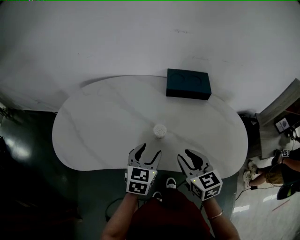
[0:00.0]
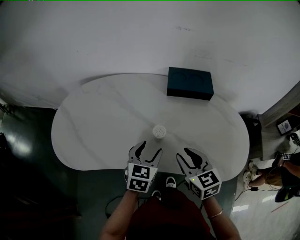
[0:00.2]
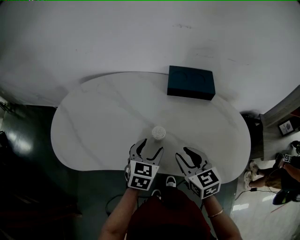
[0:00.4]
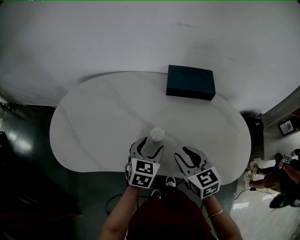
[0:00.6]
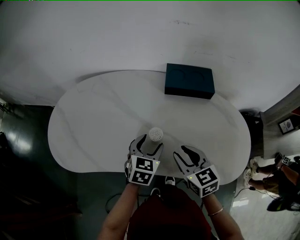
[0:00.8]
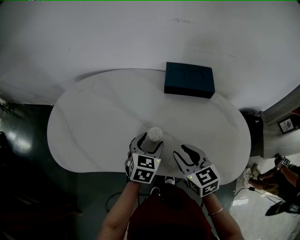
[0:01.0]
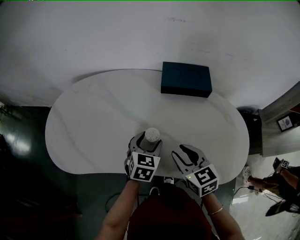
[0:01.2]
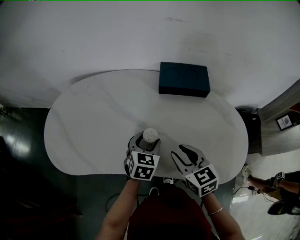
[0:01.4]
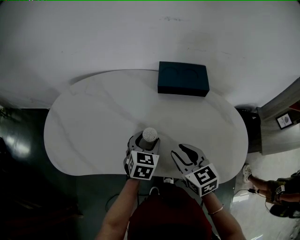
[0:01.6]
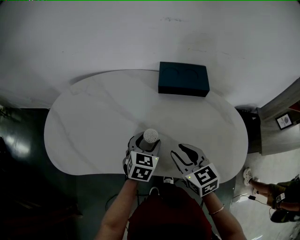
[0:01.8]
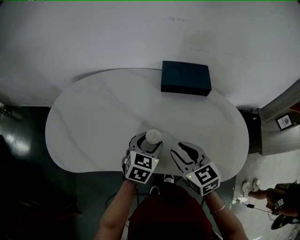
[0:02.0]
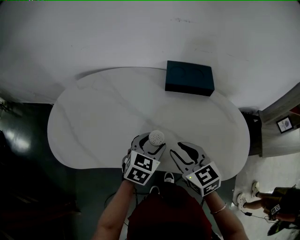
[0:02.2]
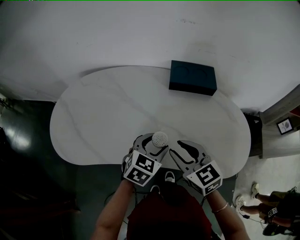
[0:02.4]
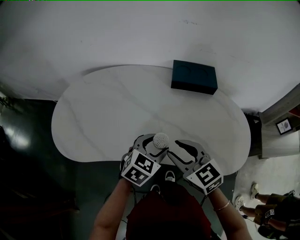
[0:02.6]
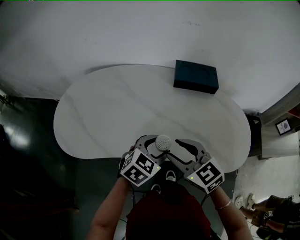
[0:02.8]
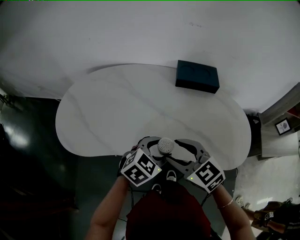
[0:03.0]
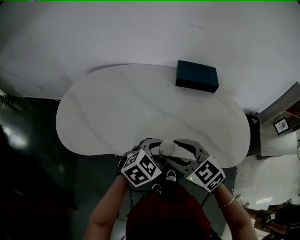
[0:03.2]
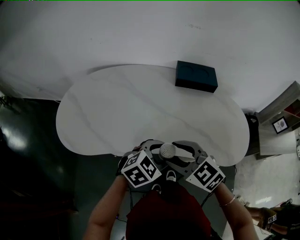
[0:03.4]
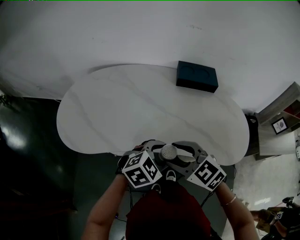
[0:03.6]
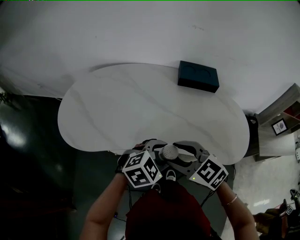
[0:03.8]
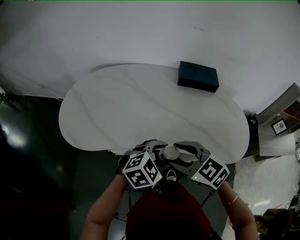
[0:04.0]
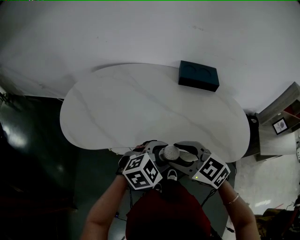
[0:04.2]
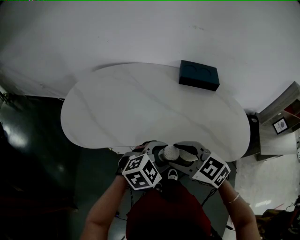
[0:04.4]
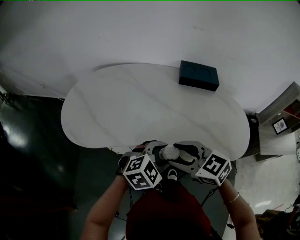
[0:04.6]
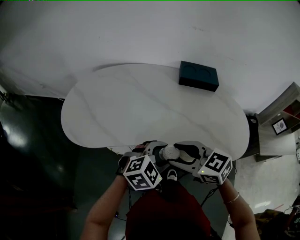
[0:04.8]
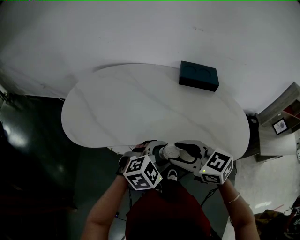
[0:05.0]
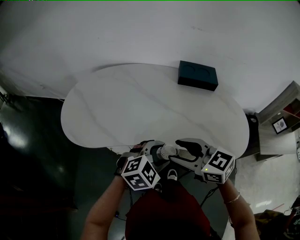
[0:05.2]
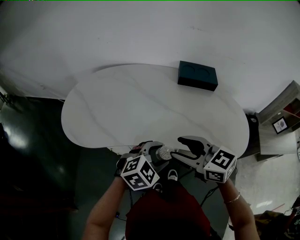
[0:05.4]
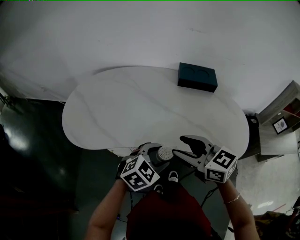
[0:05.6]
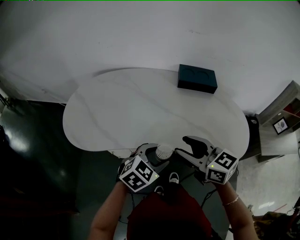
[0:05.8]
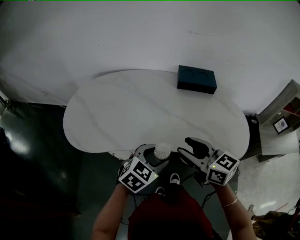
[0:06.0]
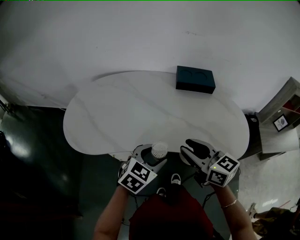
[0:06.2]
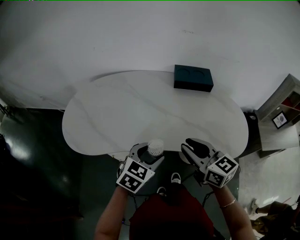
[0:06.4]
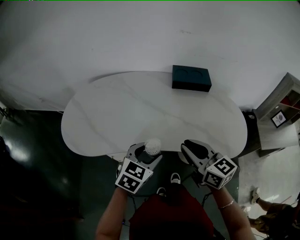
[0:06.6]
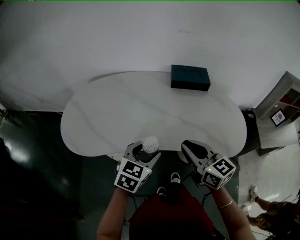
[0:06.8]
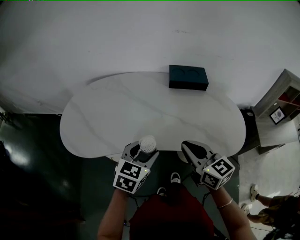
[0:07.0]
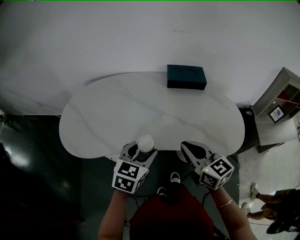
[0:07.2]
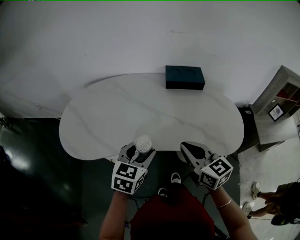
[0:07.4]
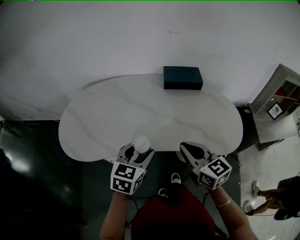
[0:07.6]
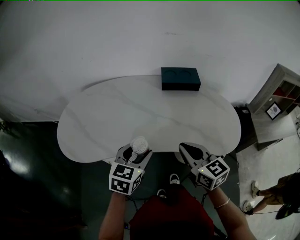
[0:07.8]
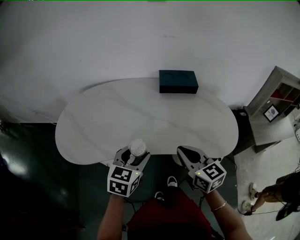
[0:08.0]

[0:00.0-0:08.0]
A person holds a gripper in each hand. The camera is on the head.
0:00.0 to 0:01.6: The right gripper changes place by some 5 cm; the left gripper is displaced forward by approximately 10 cm.
0:01.6 to 0:03.2: The left gripper goes approximately 15 cm backward, and rotates some 30 degrees. Meanwhile the right gripper goes some 15 cm to the left, backward and upward, turns by approximately 30 degrees, and opens.
0:03.2 to 0:04.8: The two grippers go some 5 cm backward.
0:04.8 to 0:06.4: The right gripper goes approximately 5 cm to the right, turns by about 30 degrees, and closes its fingers. Meanwhile the left gripper shifts by some 5 cm, and swivels some 30 degrees.
0:06.4 to 0:08.0: The right gripper closes.

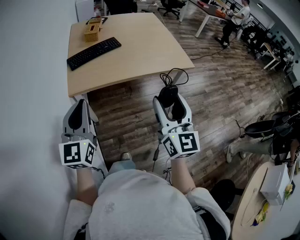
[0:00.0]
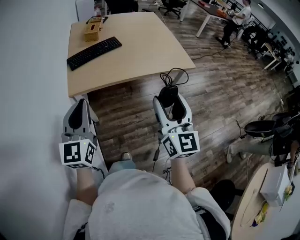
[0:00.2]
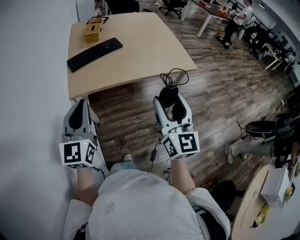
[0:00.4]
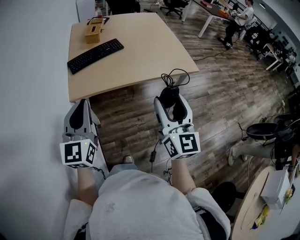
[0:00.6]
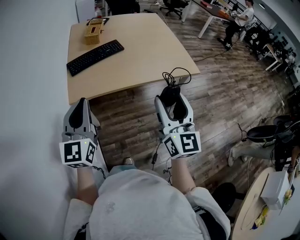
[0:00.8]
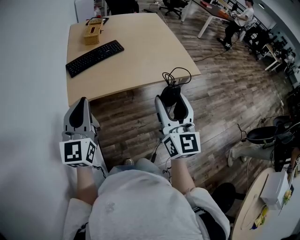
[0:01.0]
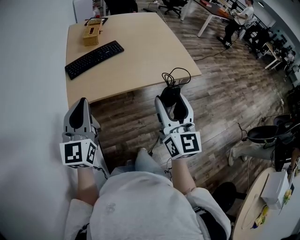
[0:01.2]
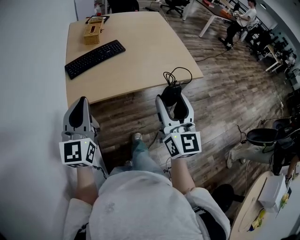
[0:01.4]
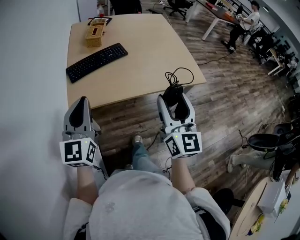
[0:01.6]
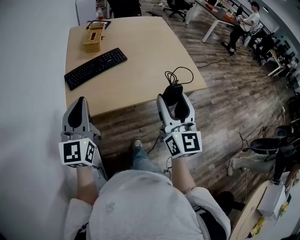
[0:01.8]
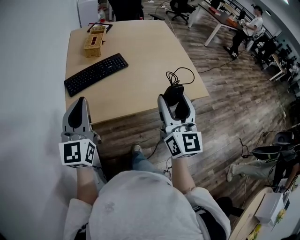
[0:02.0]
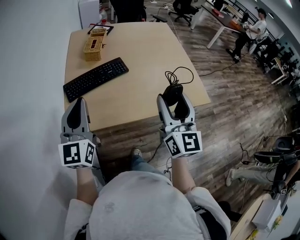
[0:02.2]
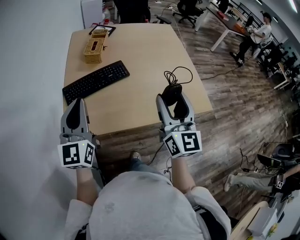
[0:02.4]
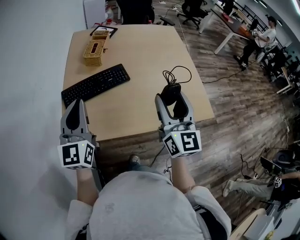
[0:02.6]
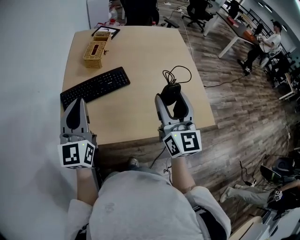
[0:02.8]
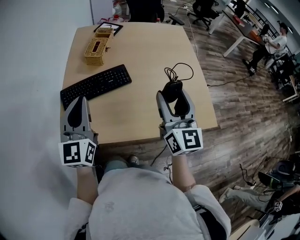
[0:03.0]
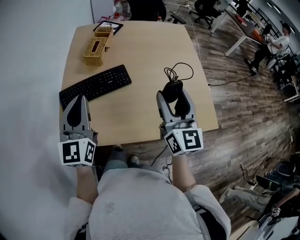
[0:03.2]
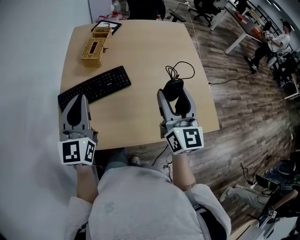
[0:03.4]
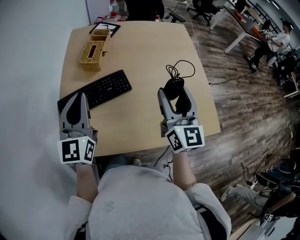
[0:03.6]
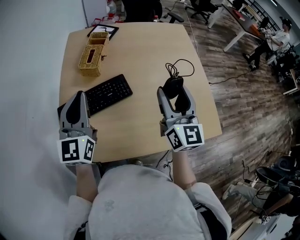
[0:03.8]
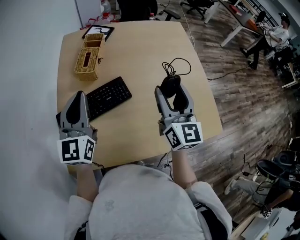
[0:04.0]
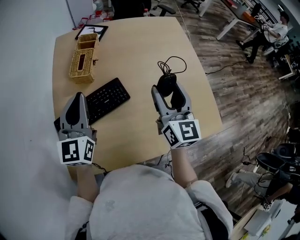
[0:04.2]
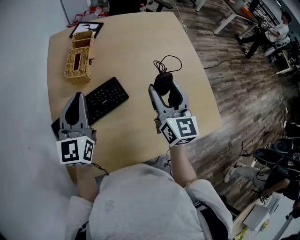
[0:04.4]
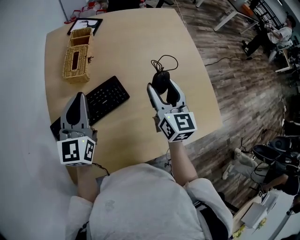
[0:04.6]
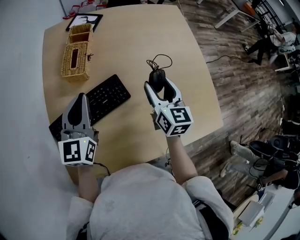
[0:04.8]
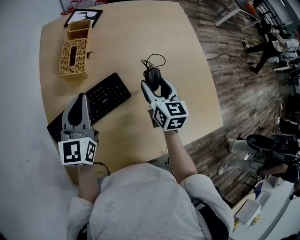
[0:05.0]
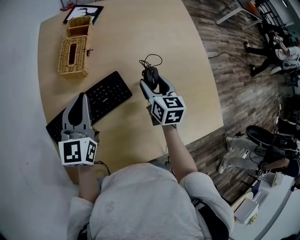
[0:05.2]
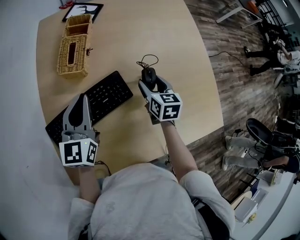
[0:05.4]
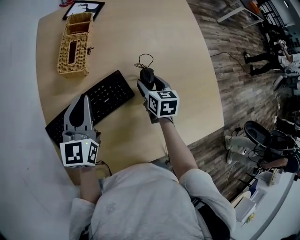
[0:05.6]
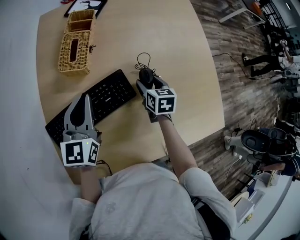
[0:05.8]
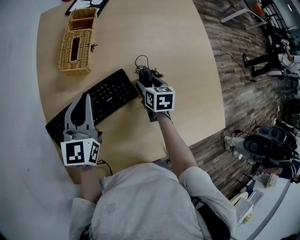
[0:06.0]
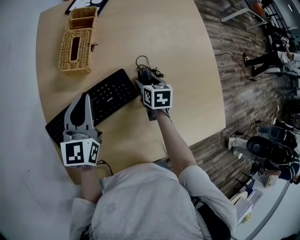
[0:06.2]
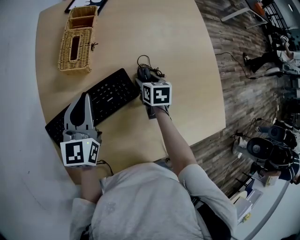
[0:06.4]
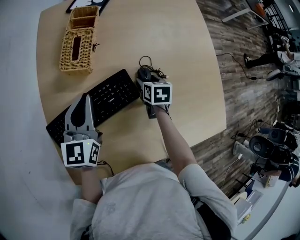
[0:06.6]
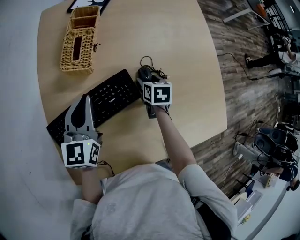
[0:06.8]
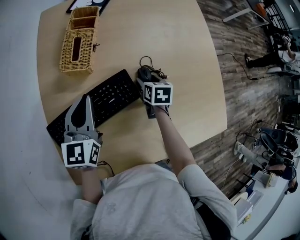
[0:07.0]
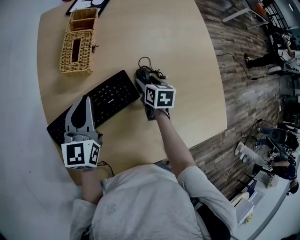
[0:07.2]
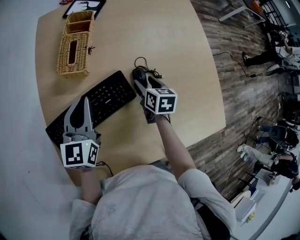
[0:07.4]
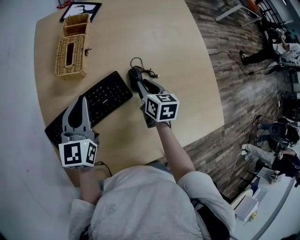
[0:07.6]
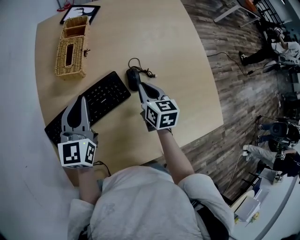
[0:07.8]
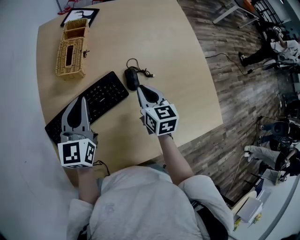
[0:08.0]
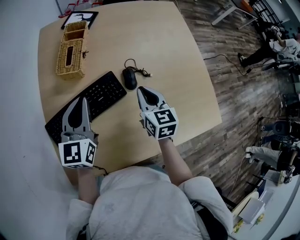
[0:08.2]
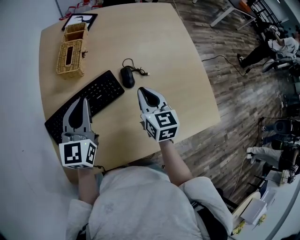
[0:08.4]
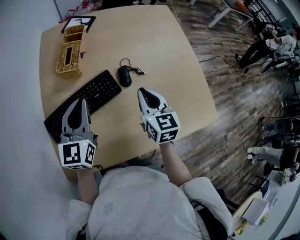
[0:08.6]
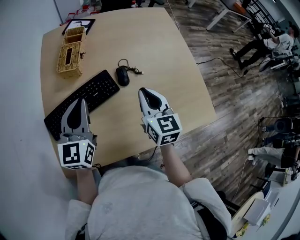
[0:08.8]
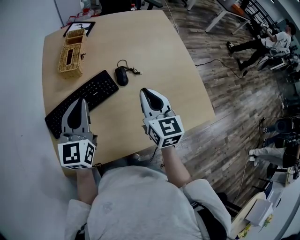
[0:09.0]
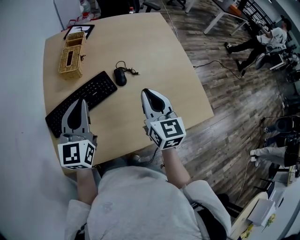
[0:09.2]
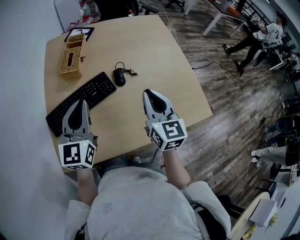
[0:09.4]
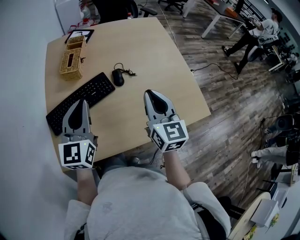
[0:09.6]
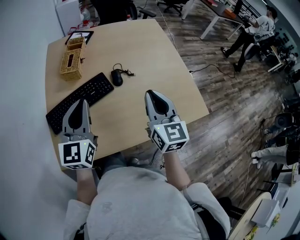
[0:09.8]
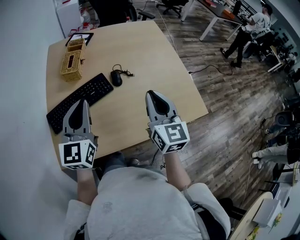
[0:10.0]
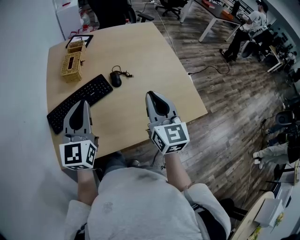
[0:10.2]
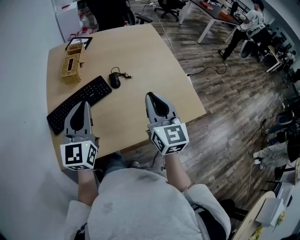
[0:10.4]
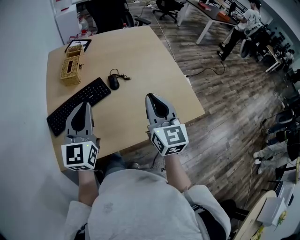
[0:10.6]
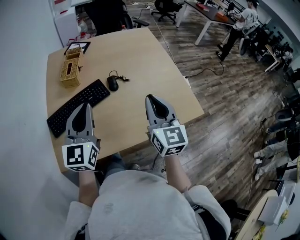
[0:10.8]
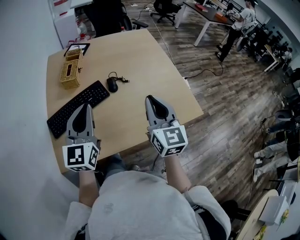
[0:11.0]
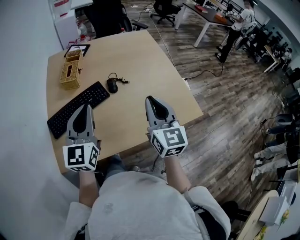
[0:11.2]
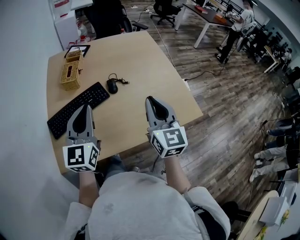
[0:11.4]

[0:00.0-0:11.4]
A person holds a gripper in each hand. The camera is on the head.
0:00.0 to 0:01.4: The grippers both shift forward by approximately 15 cm.
0:01.4 to 0:02.8: Both grippers move forward, approximately 30 cm.
0:02.8 to 0:04.2: Both grippers travel together forward, approximately 20 cm.
0:04.2 to 0:05.6: The left gripper goes some 15 cm downward and forward. Meanwhile the right gripper moves downward and forward, about 25 cm, and points its fingers some 40 degrees further downward.
0:05.6 to 0:07.2: The right gripper moves downward, approximately 5 cm.
0:07.2 to 0:08.6: The left gripper goes roughly 15 cm backward, upward and to the right, while the right gripper is displaced upward and backward by approximately 25 cm, rotates some 30 degrees, and closes.
0:08.6 to 0:10.0: The left gripper shifts roughly 15 cm backward and upward. The right gripper travels backward, upward and to the right by about 20 cm.
0:10.0 to 0:11.4: The right gripper ends up roughly 5 cm from where it was.

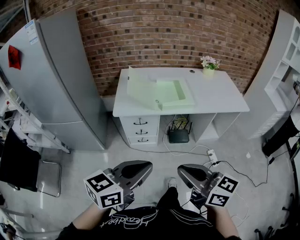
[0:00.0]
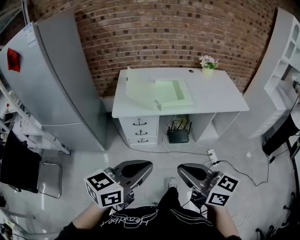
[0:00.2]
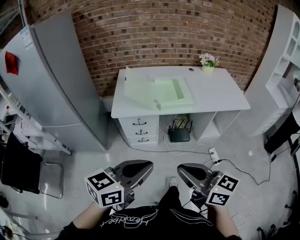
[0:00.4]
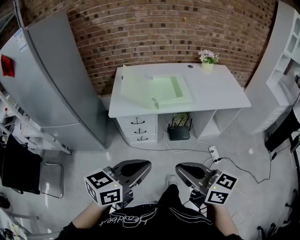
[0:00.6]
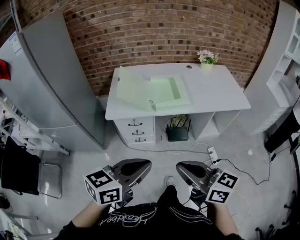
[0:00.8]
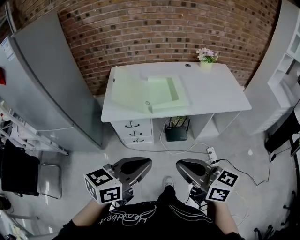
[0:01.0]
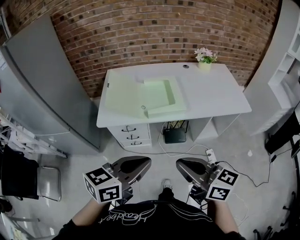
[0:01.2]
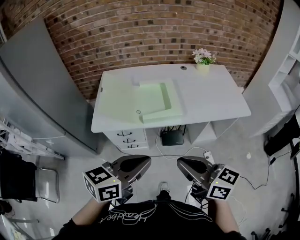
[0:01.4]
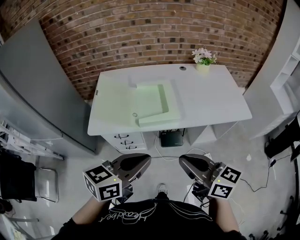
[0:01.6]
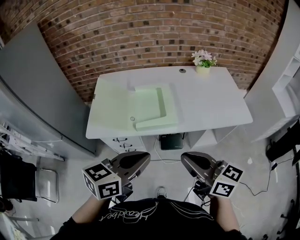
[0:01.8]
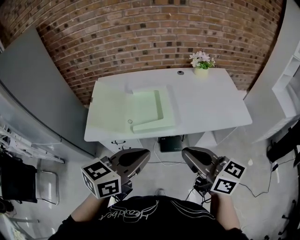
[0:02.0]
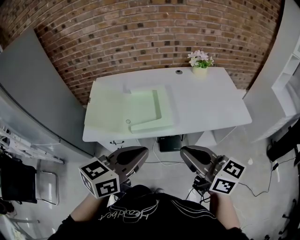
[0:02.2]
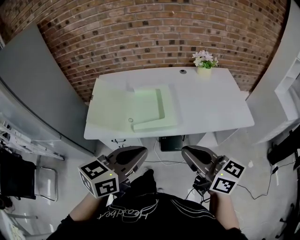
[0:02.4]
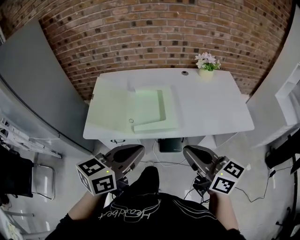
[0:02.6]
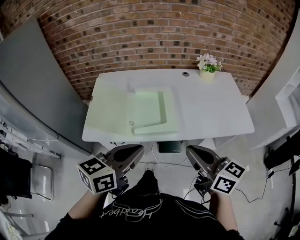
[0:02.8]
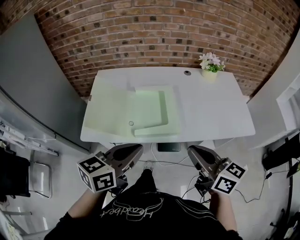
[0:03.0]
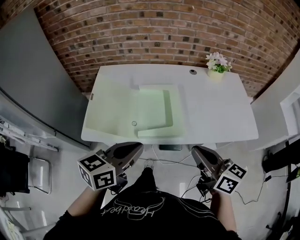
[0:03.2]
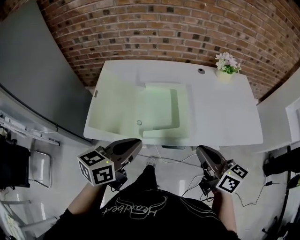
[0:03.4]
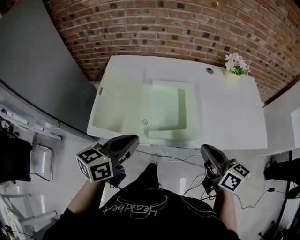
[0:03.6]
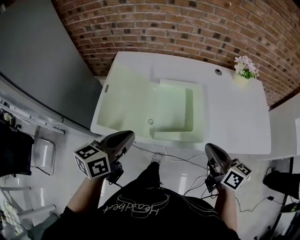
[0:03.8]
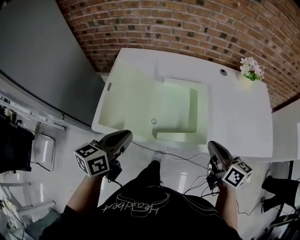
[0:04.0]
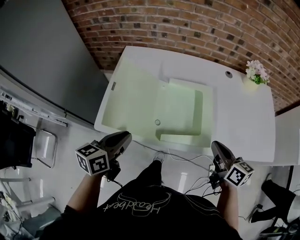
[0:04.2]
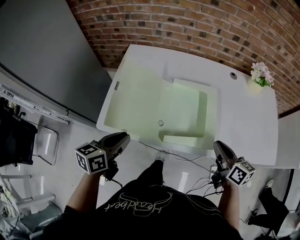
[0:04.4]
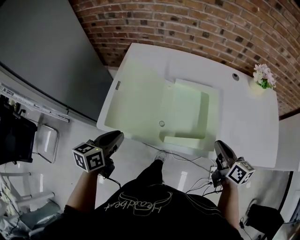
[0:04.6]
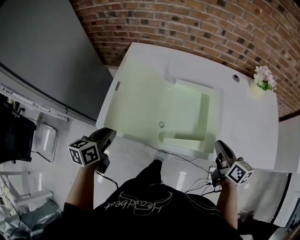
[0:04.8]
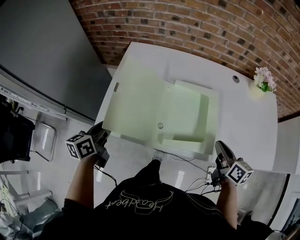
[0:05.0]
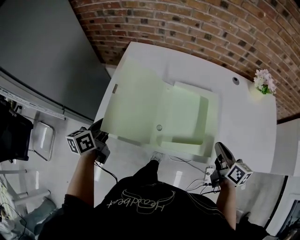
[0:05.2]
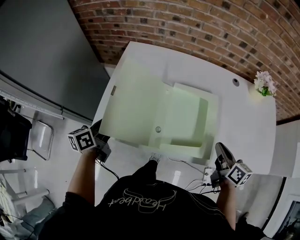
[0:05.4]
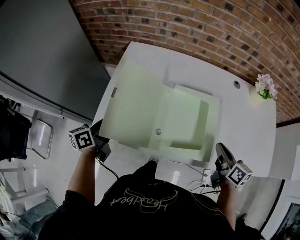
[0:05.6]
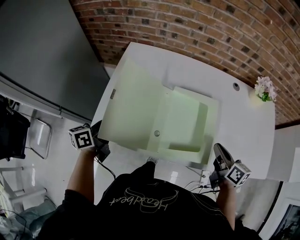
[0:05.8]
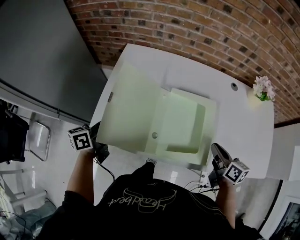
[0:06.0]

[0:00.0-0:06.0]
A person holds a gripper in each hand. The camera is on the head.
0:00.0 to 0:01.6: The grippers both shift forward and to the right by about 25 cm.
0:01.6 to 0:03.0: The grippers both shift forward by roughly 10 cm.
0:03.0 to 0:04.4: The right gripper goes some 20 cm forward and downward, while the left gripper goes some 25 cm to the left, downward and forward, and rotates some 30 degrees.
0:04.4 to 0:06.0: The right gripper shifts approximately 5 cm forward, while the left gripper travels forward by approximately 10 cm, and rotates approximately 20 degrees.
